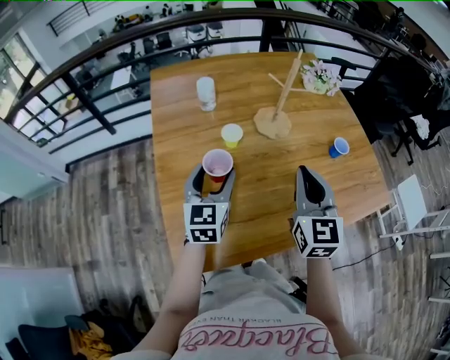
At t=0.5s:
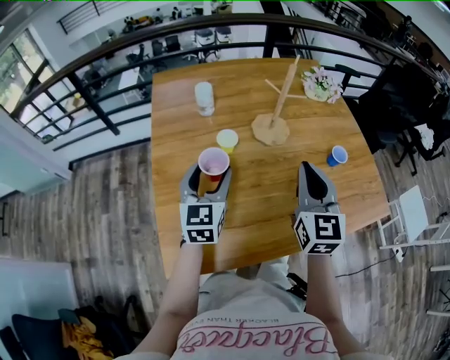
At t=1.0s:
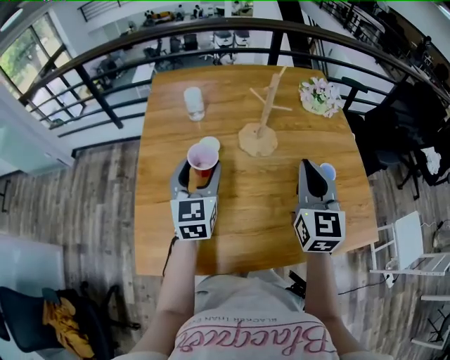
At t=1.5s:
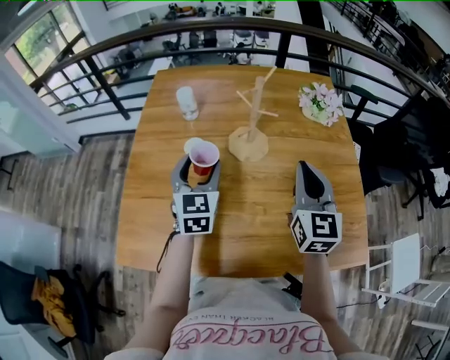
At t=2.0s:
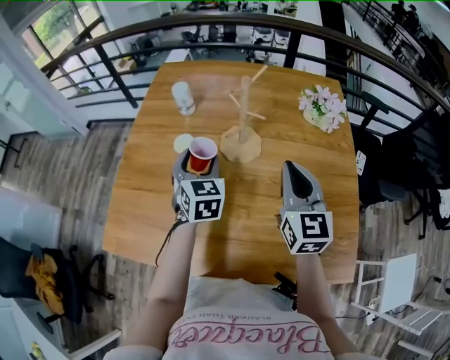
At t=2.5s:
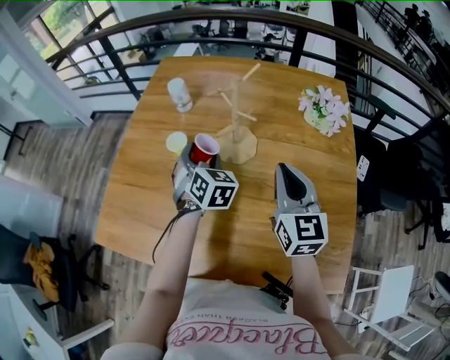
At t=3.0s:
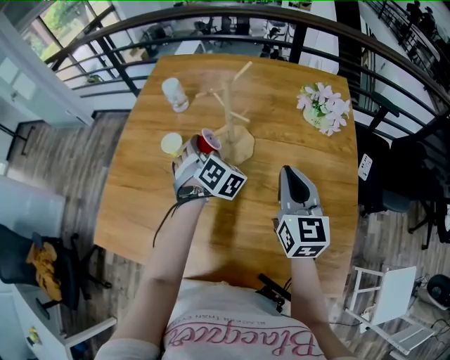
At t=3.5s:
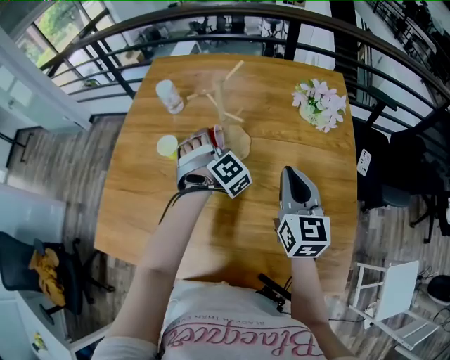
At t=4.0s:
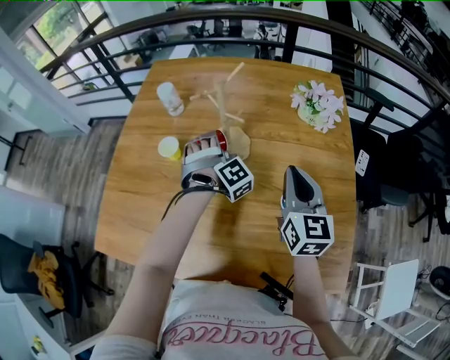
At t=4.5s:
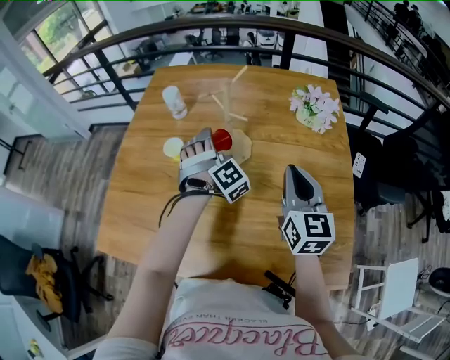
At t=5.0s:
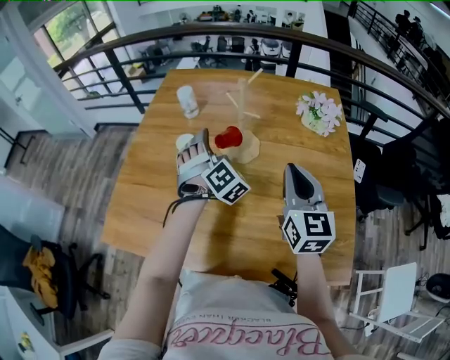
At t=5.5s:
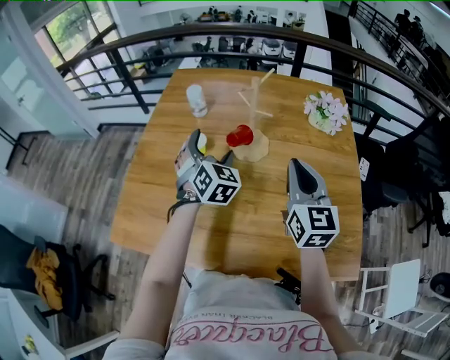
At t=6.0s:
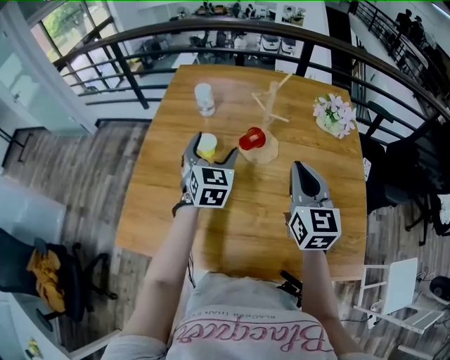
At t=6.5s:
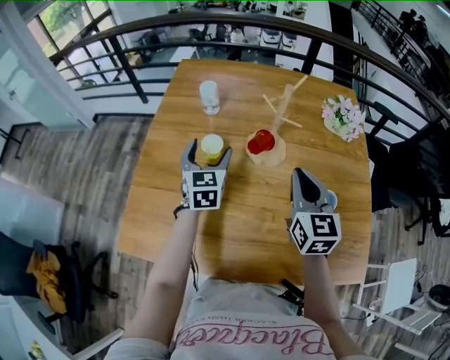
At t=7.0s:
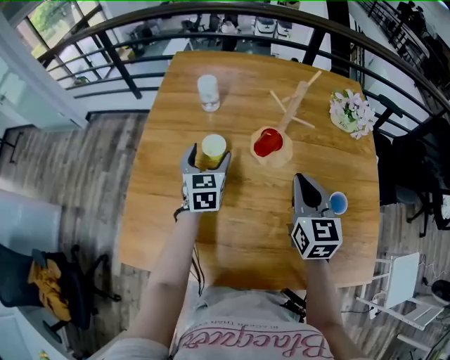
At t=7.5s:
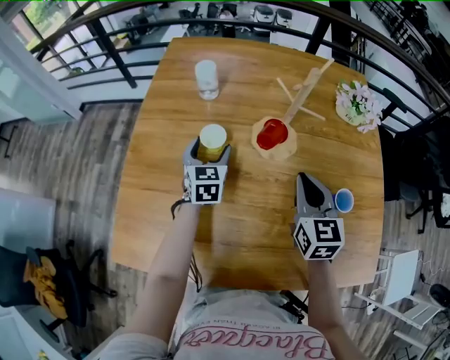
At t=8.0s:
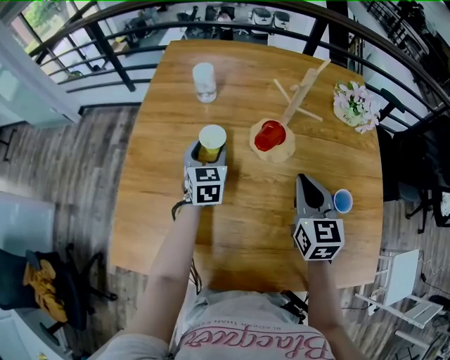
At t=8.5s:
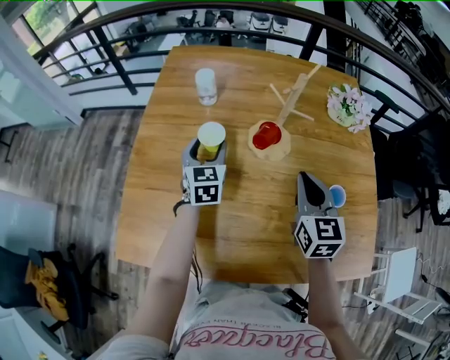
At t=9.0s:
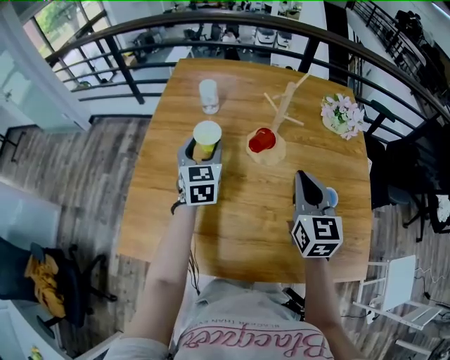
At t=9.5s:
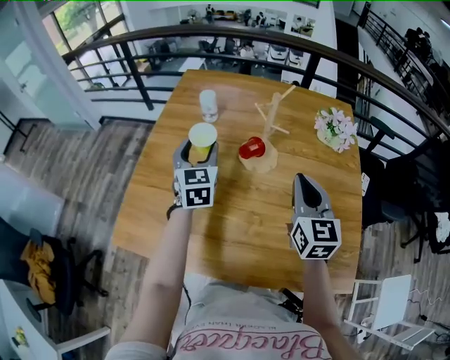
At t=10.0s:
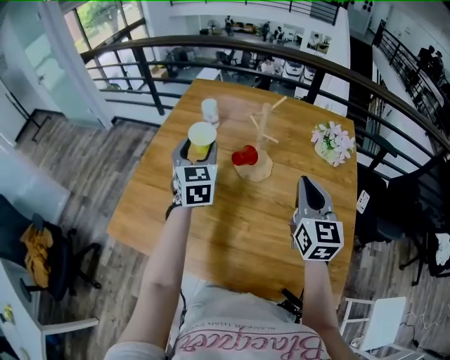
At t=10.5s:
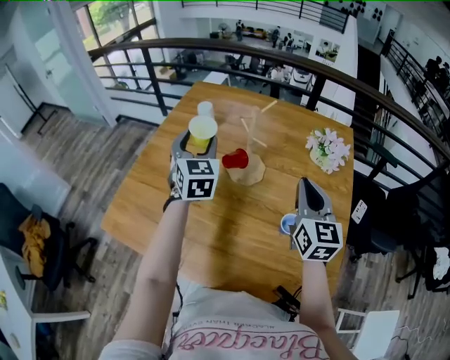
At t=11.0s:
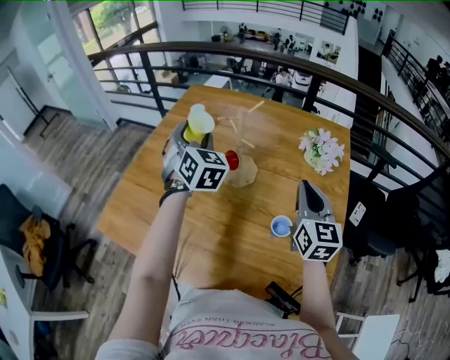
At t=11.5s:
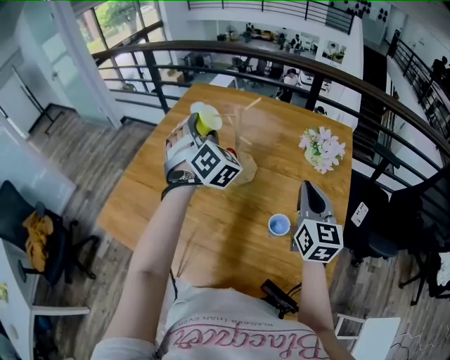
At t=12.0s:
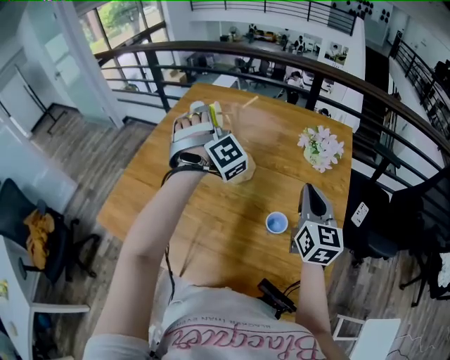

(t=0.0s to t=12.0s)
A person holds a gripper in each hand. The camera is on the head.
t=0.0s - t=2.0s: The right gripper moves roughly 25 cm, and changes its angle by about 30 degrees; the left gripper shifts by some 20 cm, and rotates roughly 40 degrees.
t=2.0s - t=4.0s: The left gripper moves to the right, downward and forward, approximately 15 cm, and twists some 70 degrees clockwise, seen from behind, while the right gripper moves to the right, some 5 cm.
t=4.0s - t=6.0s: The grippers both shift to the left and upward by roughly 15 cm. The left gripper rolls counterclockwise, seen from behind, by roughly 60 degrees.
t=6.0s - t=8.0s: The right gripper travels downward by approximately 10 cm; the left gripper moves downward and forward, roughly 15 cm.
t=8.0s - t=10.0s: The right gripper moves upward and to the right, some 15 cm. The left gripper heads upward, covering about 20 cm.
t=10.0s - t=12.0s: The grippers both shift to the right by roughly 10 cm. The left gripper rolls clockwise, seen from behind, by roughly 70 degrees.

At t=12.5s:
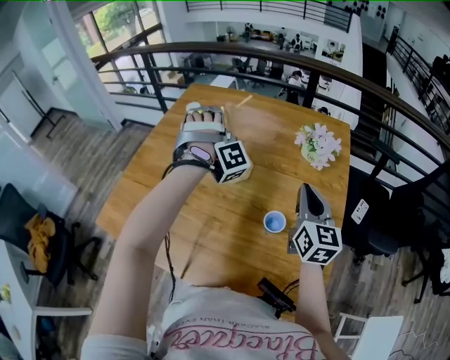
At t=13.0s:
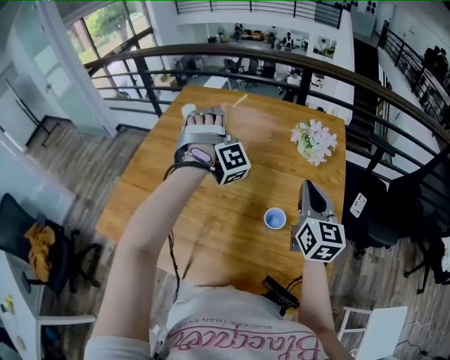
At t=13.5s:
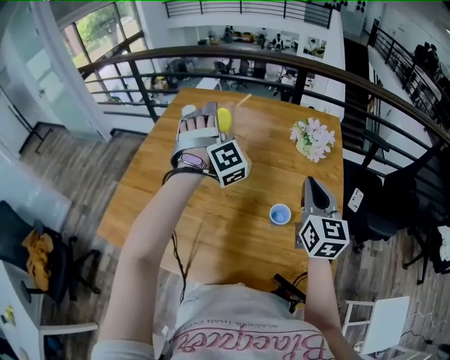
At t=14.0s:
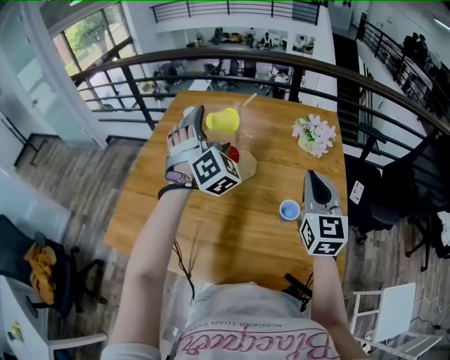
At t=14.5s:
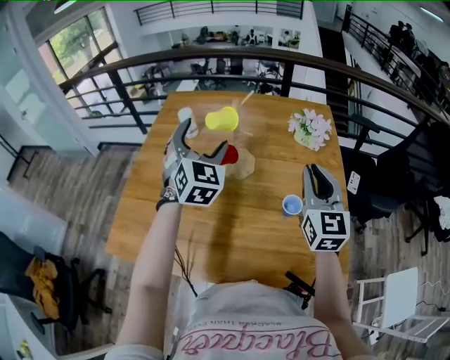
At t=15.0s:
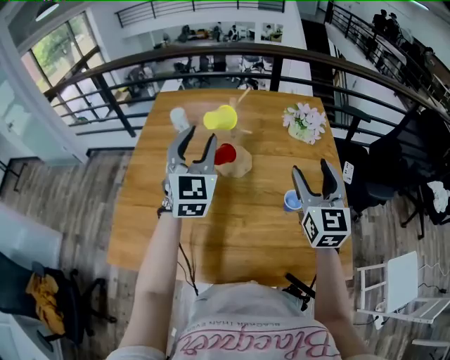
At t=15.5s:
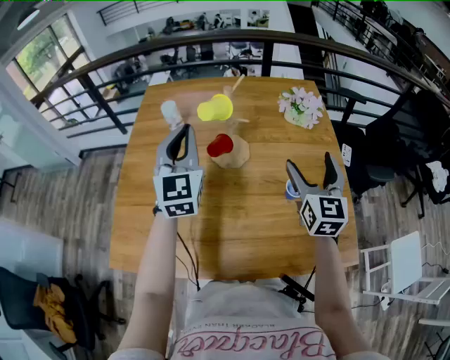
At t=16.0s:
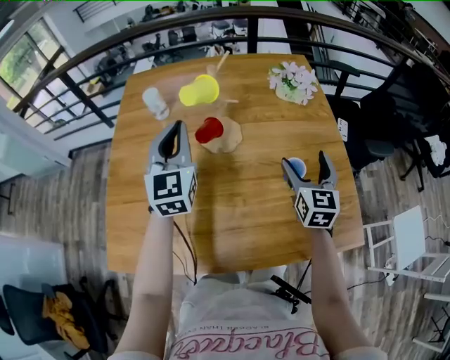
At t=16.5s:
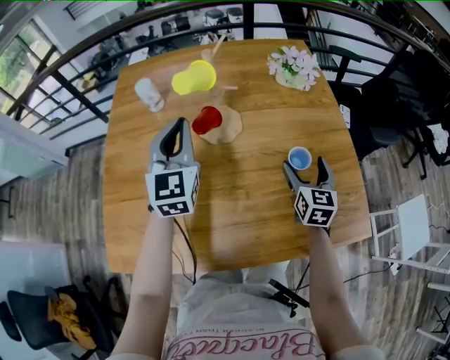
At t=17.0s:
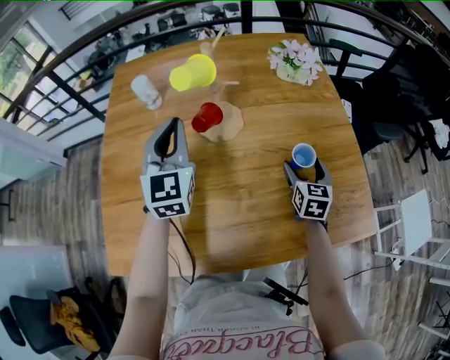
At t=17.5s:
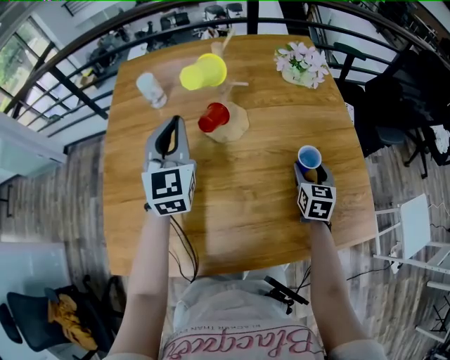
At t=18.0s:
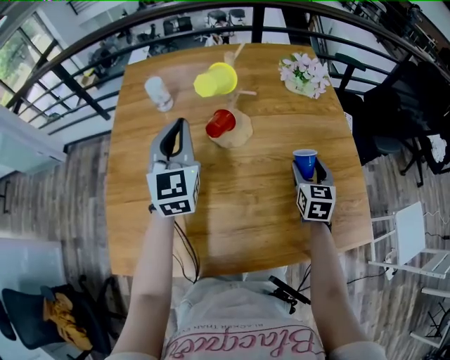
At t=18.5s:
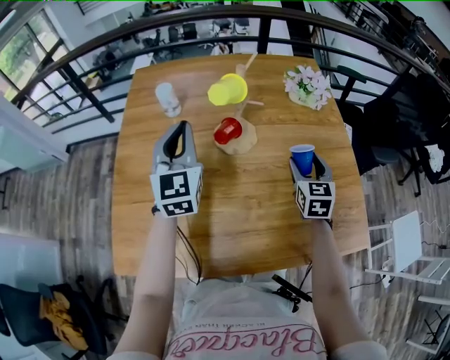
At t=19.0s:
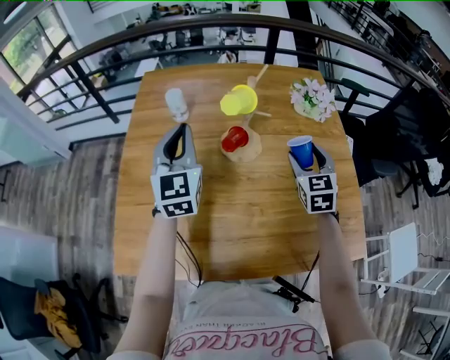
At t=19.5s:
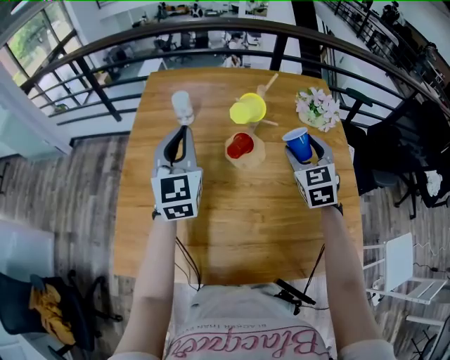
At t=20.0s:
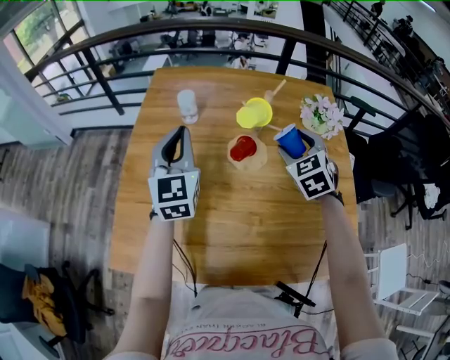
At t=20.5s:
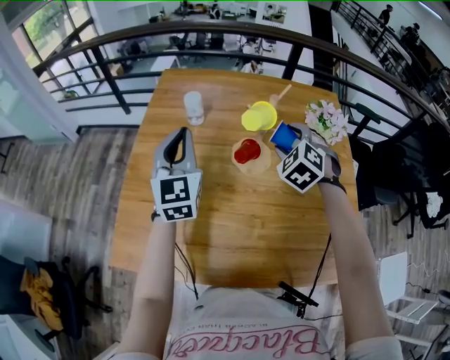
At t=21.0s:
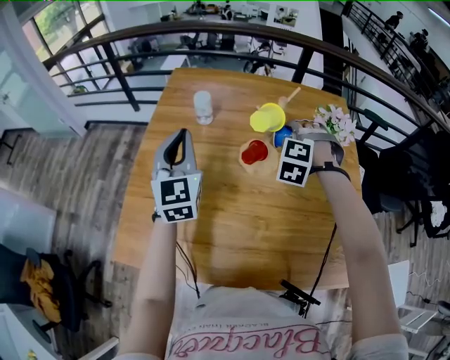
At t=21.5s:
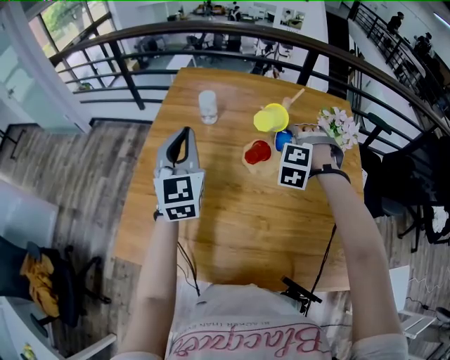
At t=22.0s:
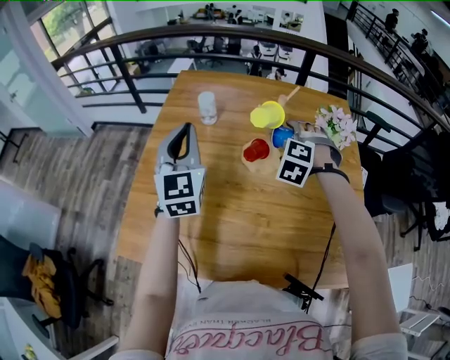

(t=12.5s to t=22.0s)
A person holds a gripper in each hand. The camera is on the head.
t=12.5s - t=14.5s: The left gripper changes place by roughly 10 cm, and rotates around the line of its fingers by about 70 degrees, counterclockwise from behind; the right gripper changes place by approximately 10 cm, and swivels roughly 20 degrees.
t=14.5s - t=16.5s: The right gripper shifts approximately 20 cm downward, rotates about 30 degrees, and opens its fingers; the left gripper goes roughly 10 cm downward, swivels about 30 degrees, and closes its fingers.
t=16.5s - t=18.0s: The right gripper closes its fingers.
t=18.0s - t=20.0s: The left gripper is displaced to the left by approximately 5 cm. Meanwhile the right gripper heads upward, to the left and forward, covering roughly 20 cm, and changes its angle by approximately 40 degrees.
t=20.0s - t=22.0s: The right gripper moves roughly 5 cm, twists approximately 40 degrees counterclockwise, seen from behind, and opens its fingers.

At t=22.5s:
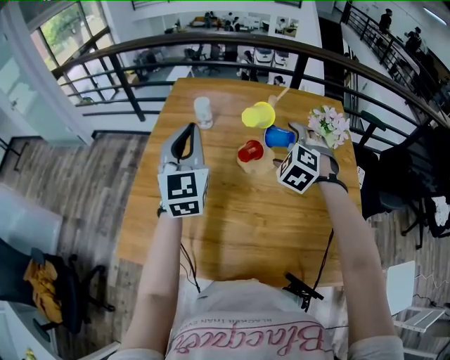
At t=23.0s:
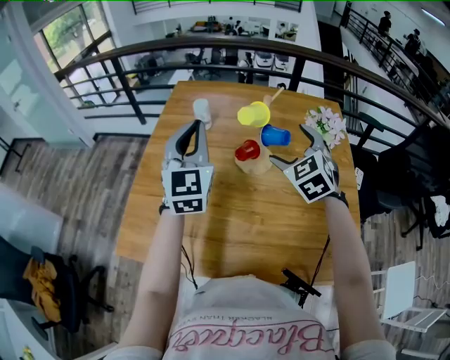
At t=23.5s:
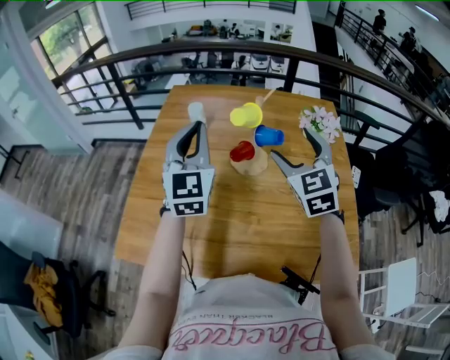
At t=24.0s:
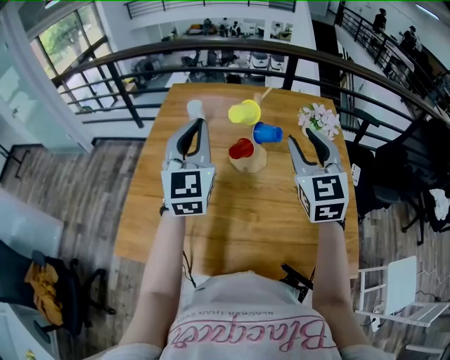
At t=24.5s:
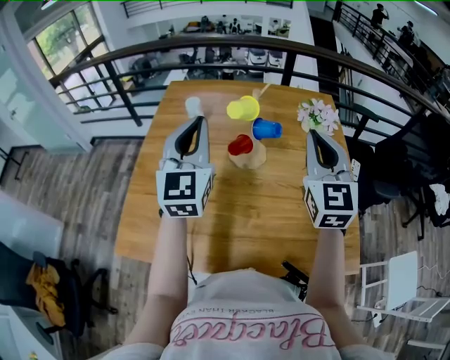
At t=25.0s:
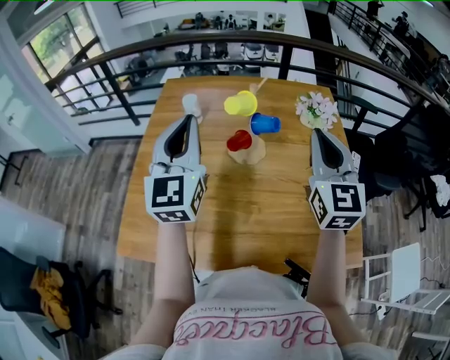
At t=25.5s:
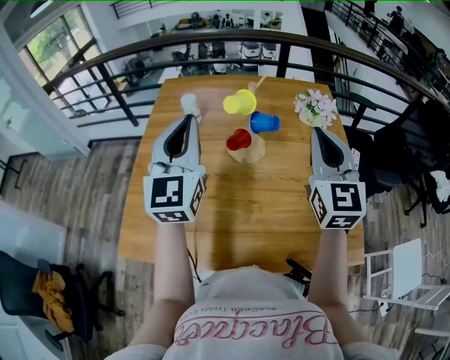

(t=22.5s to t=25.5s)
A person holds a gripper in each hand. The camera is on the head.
t=22.5s - t=24.0s: The left gripper heads to the right, covering roughly 5 cm. The right gripper is displaced upward and backward by some 15 cm, tilts its fingers about 40 degrees upward, and closes up.
t=24.0s - t=25.5s: The right gripper shifts by roughly 5 cm.

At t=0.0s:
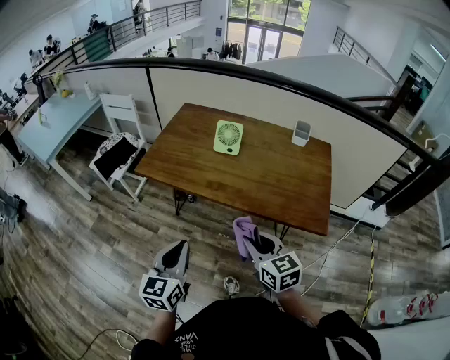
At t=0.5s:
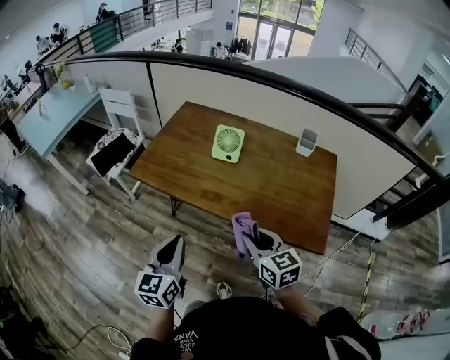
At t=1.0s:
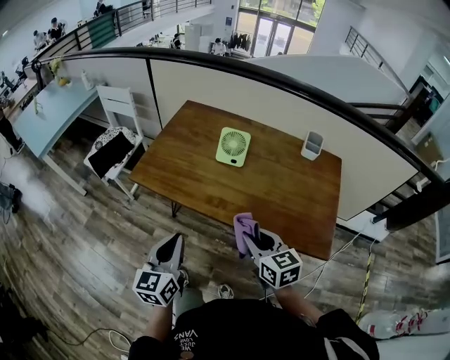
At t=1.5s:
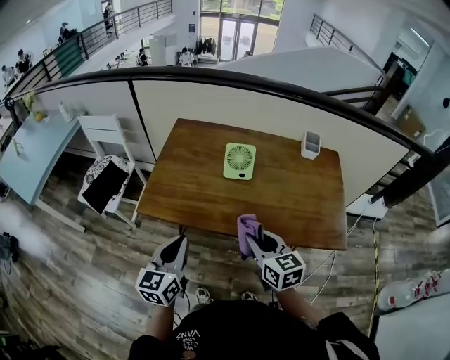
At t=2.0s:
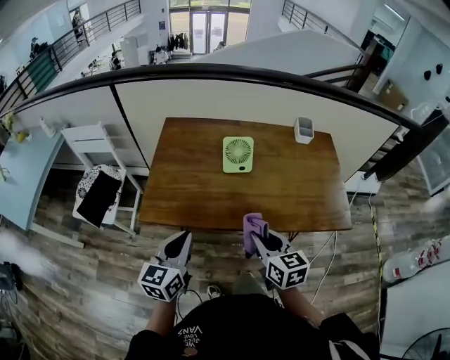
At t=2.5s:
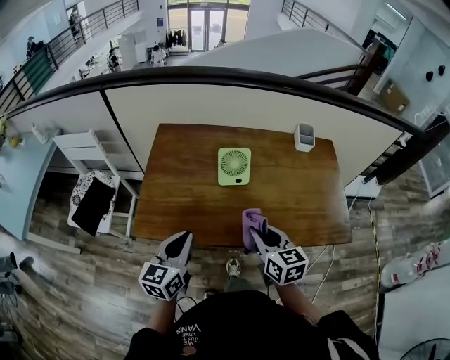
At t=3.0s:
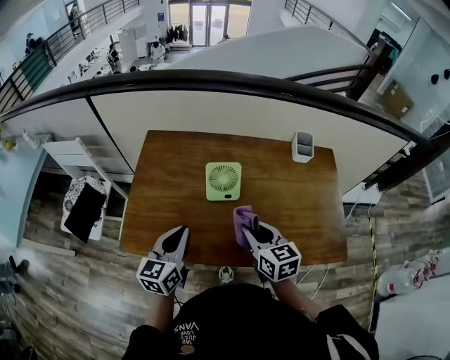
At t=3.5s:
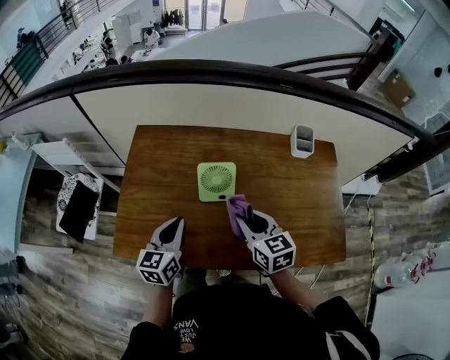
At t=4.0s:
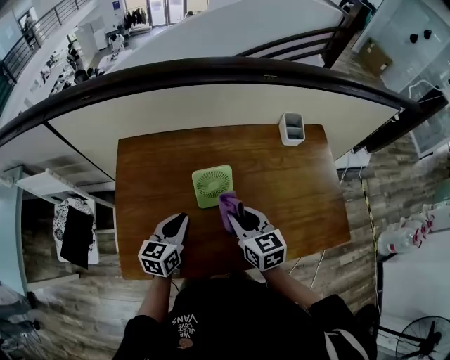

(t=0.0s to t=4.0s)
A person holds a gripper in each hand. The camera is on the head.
t=0.0s - t=2.0s: The left gripper moves approximately 30 cm, and swivels some 20 degrees. Meanwhile the right gripper moves roughly 20 cm, and changes its angle by approximately 20 degrees.
t=2.0s - t=4.0s: Both grippers travel together forward, some 25 cm.
